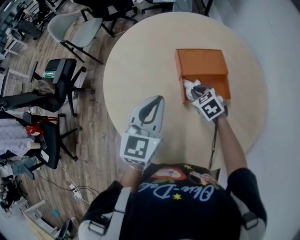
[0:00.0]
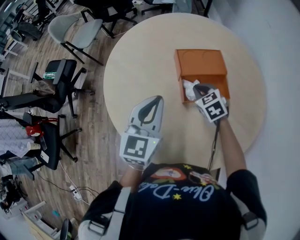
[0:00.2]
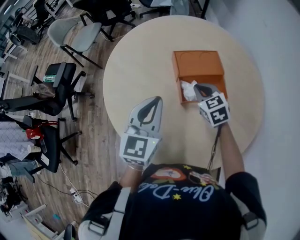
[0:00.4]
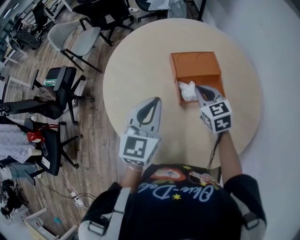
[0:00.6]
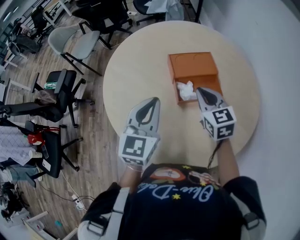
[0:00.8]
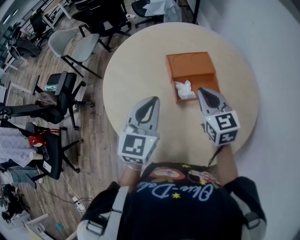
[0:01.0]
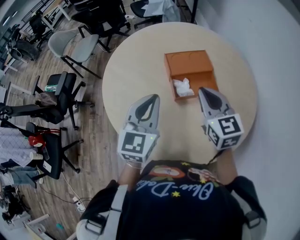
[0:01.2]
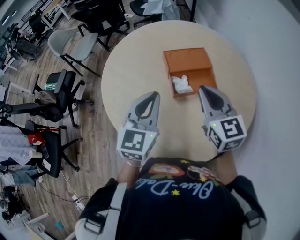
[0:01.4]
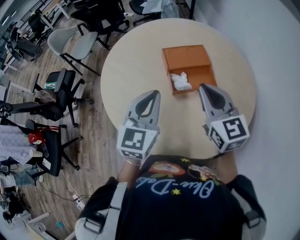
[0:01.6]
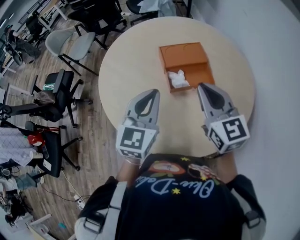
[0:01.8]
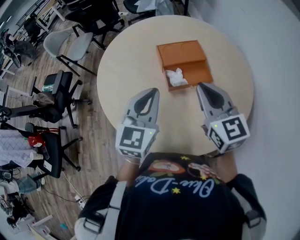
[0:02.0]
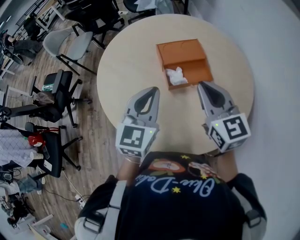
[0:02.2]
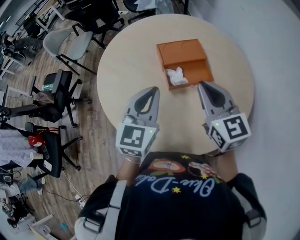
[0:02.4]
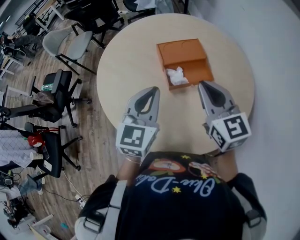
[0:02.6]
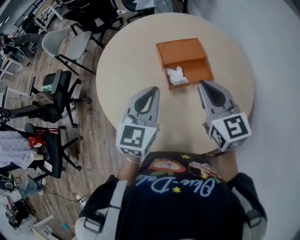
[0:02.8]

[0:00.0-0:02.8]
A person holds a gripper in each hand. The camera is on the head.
0.0 to 1.4 s: The right gripper is displaced upward and backward by some 25 cm, and tilts its fingers about 40 degrees upward. The left gripper shifts by about 5 cm.
1.4 to 2.8 s: The grippers make only small movements.

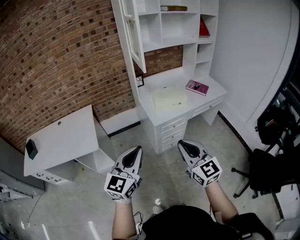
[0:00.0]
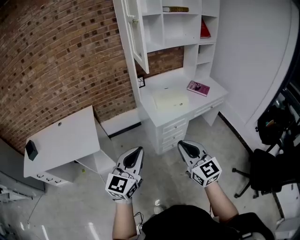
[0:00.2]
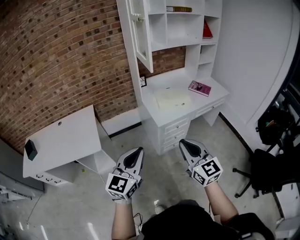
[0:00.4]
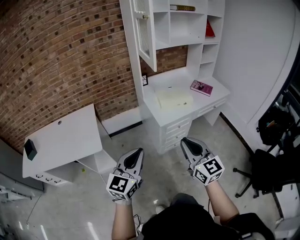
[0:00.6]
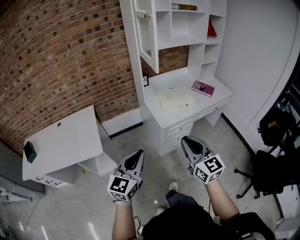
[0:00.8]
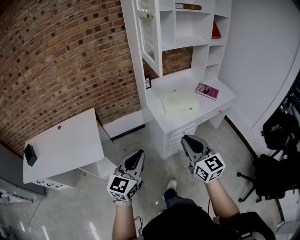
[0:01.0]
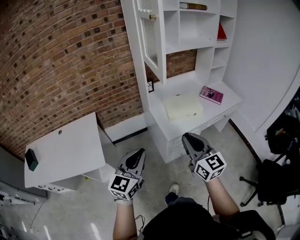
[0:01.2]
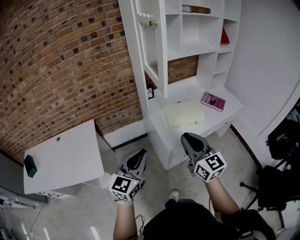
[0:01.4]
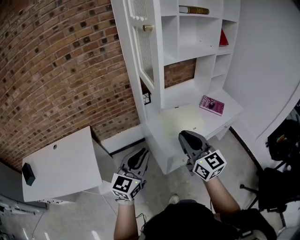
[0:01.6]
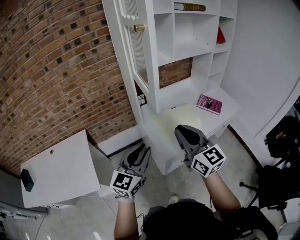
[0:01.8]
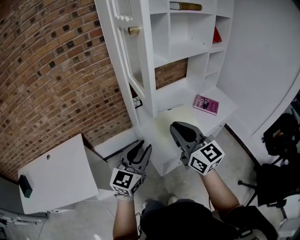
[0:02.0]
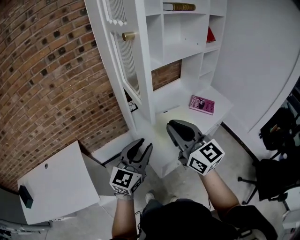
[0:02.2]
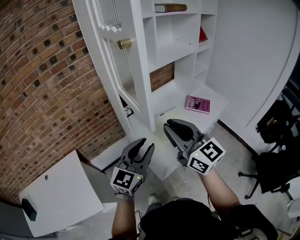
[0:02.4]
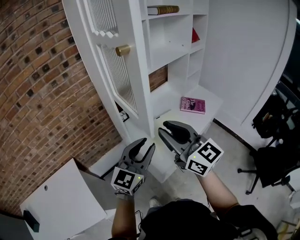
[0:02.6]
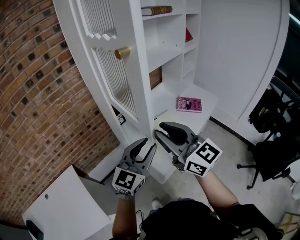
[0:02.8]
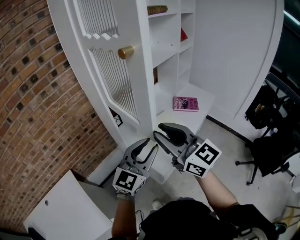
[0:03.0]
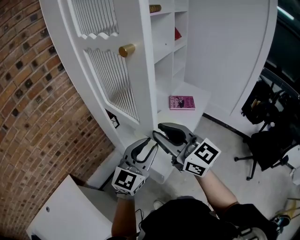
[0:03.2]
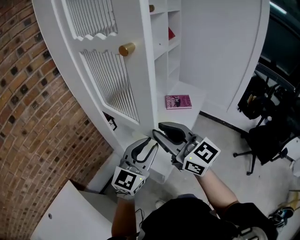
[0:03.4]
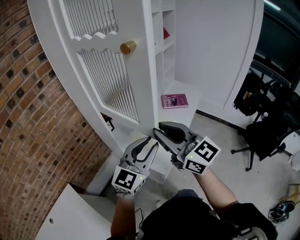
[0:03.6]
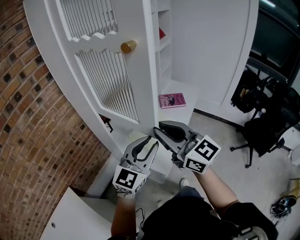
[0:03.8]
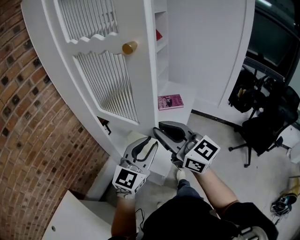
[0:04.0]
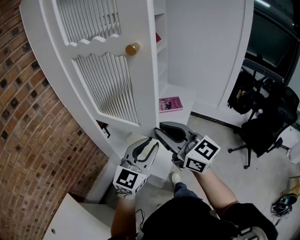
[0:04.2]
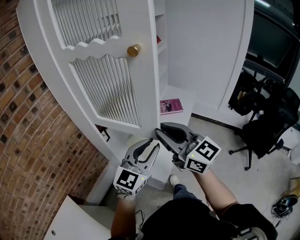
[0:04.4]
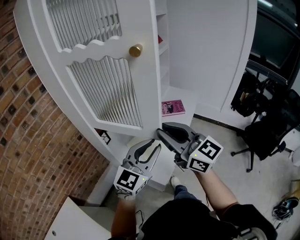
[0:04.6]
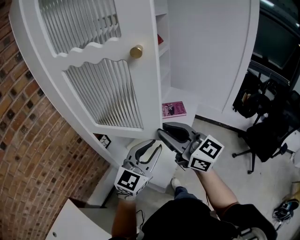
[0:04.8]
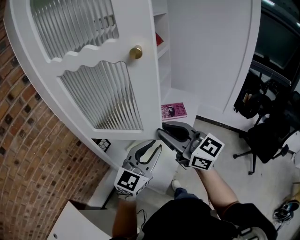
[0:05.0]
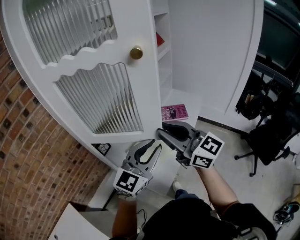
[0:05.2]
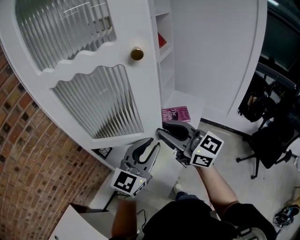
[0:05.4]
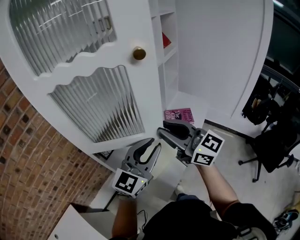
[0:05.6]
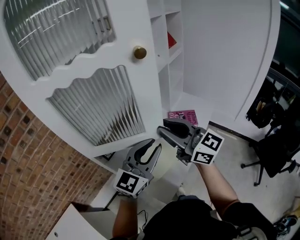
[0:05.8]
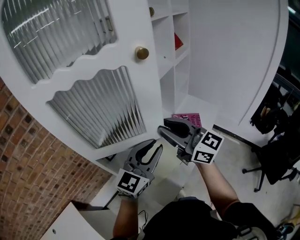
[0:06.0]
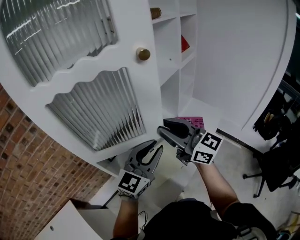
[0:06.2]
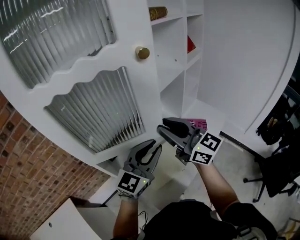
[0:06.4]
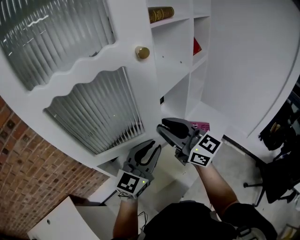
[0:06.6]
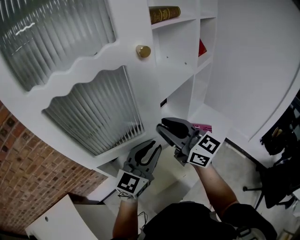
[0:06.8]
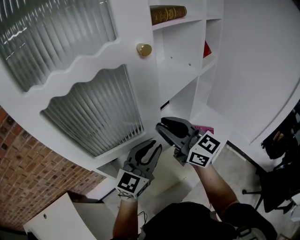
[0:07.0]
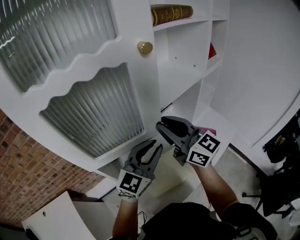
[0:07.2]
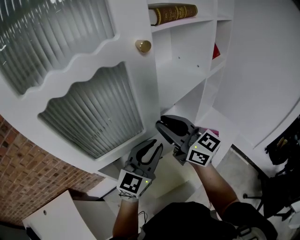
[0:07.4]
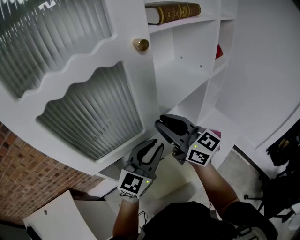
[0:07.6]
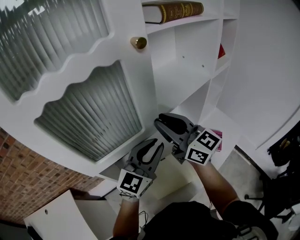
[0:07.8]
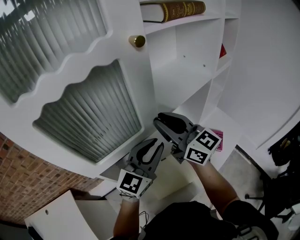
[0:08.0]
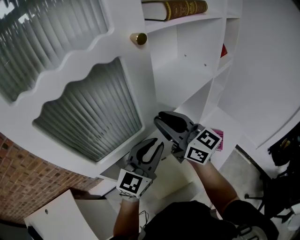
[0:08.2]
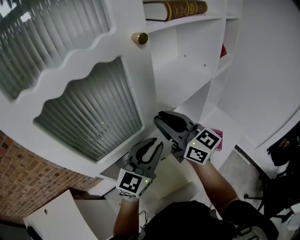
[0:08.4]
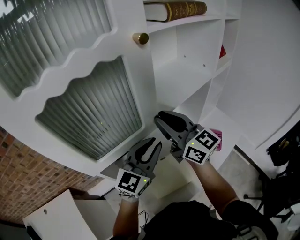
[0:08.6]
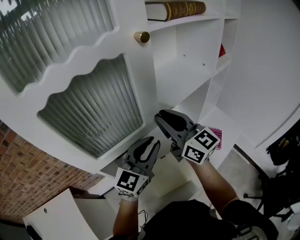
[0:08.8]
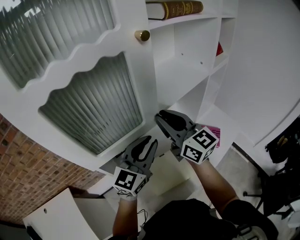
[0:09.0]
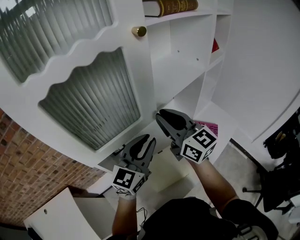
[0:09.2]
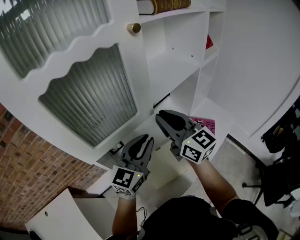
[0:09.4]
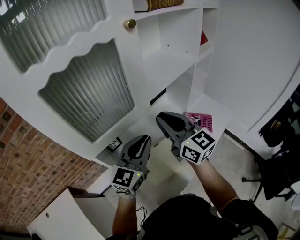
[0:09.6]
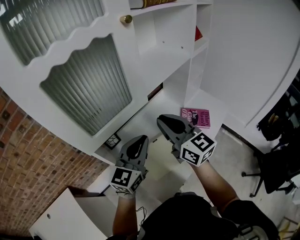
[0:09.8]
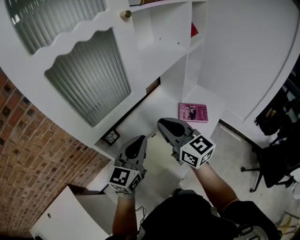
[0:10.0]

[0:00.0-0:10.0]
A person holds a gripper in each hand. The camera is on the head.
0.0 to 1.4 s: The two grippers go some 25 cm forward.
1.4 to 2.8 s: The left gripper is displaced forward by approximately 20 cm, swivels some 30 degrees, and opens up; the right gripper heads forward and upward, covering some 20 cm.
2.8 to 4.2 s: The grippers stay close to where they were, moving slightly.
4.2 to 5.8 s: Both grippers move forward, about 20 cm.
5.8 to 7.2 s: Both grippers travel together forward, some 15 cm.
7.2 to 8.6 s: The right gripper moves some 5 cm.
8.6 to 10.0 s: The left gripper goes approximately 10 cm backward; the right gripper moves backward and downward, approximately 15 cm.

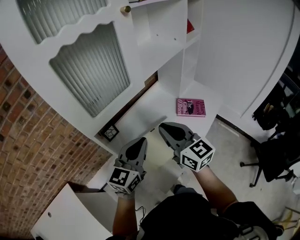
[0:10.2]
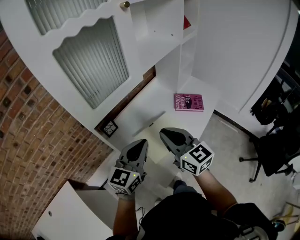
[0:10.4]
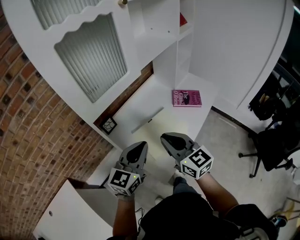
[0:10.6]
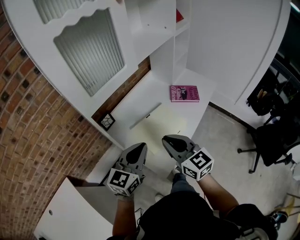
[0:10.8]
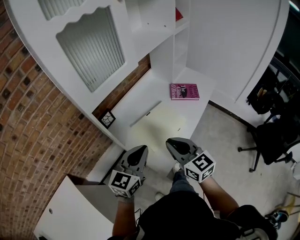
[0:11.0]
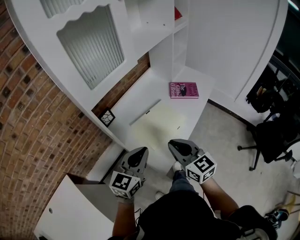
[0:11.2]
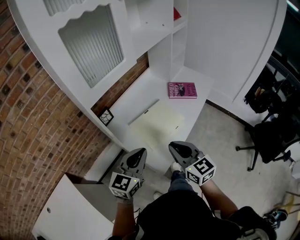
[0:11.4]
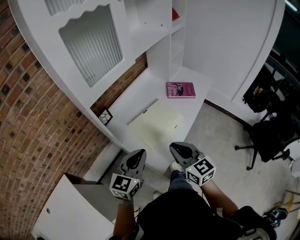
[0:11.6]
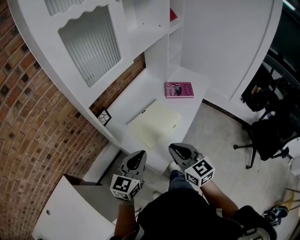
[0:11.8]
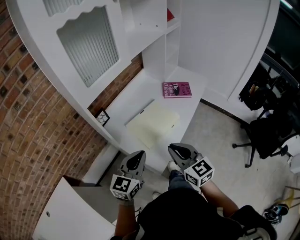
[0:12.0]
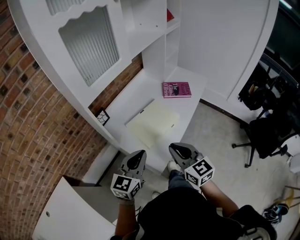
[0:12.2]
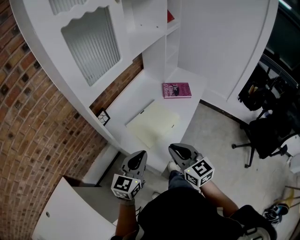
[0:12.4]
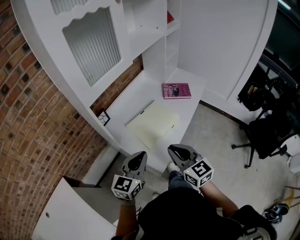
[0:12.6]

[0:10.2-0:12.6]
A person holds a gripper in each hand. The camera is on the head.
10.2 to 11.4 s: Both grippers move backward and downward, approximately 20 cm.
11.4 to 12.6 s: There are only small adjustments of the grippers.

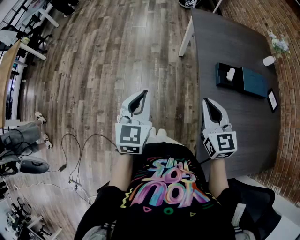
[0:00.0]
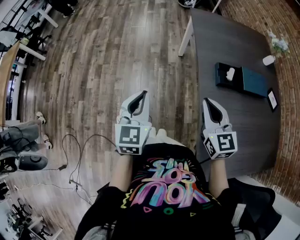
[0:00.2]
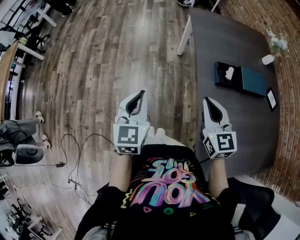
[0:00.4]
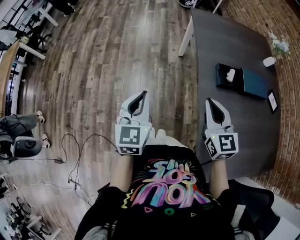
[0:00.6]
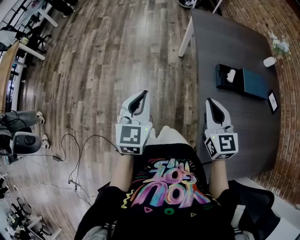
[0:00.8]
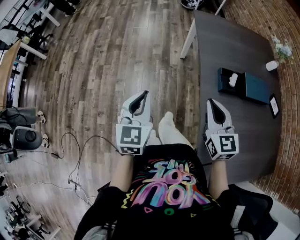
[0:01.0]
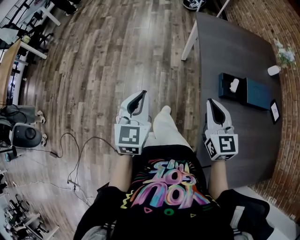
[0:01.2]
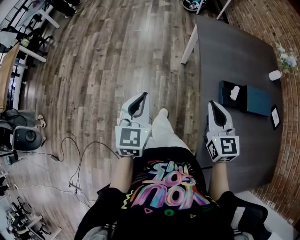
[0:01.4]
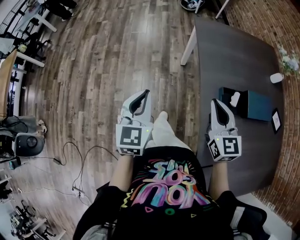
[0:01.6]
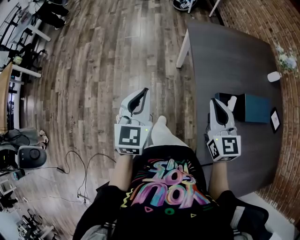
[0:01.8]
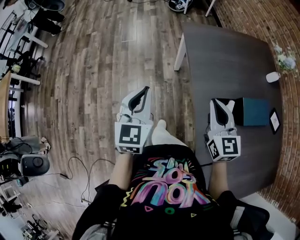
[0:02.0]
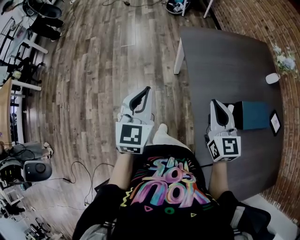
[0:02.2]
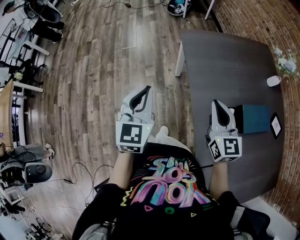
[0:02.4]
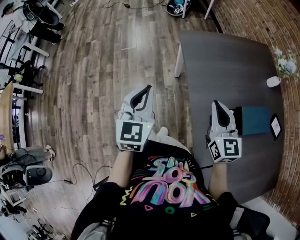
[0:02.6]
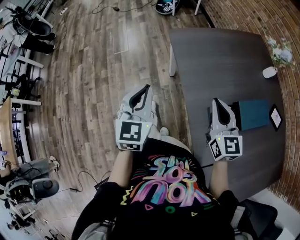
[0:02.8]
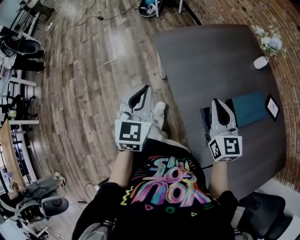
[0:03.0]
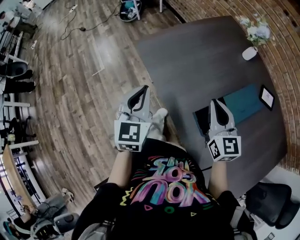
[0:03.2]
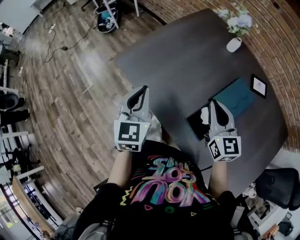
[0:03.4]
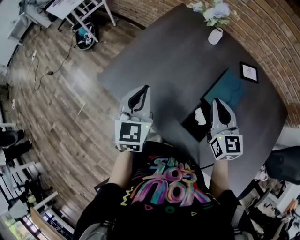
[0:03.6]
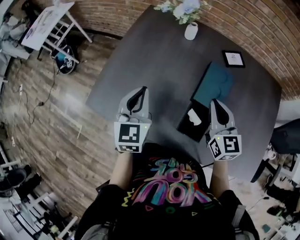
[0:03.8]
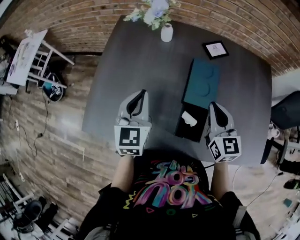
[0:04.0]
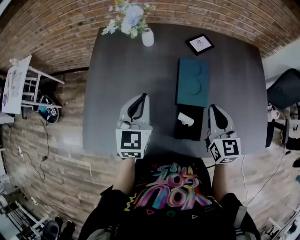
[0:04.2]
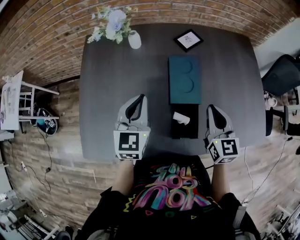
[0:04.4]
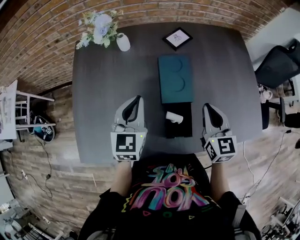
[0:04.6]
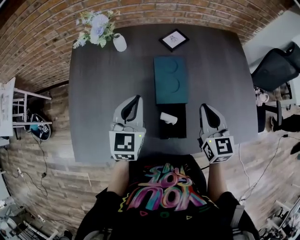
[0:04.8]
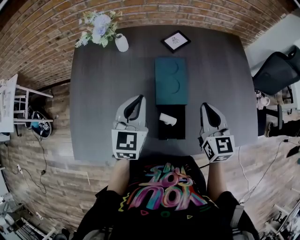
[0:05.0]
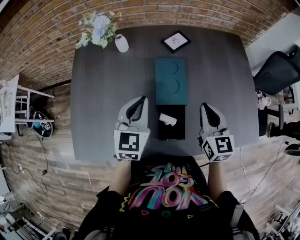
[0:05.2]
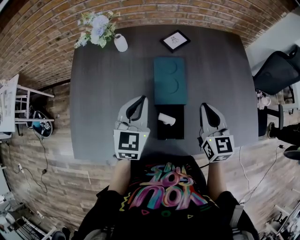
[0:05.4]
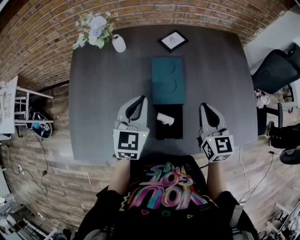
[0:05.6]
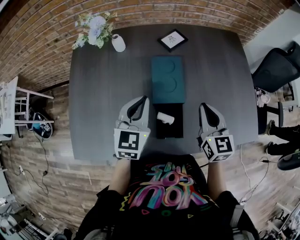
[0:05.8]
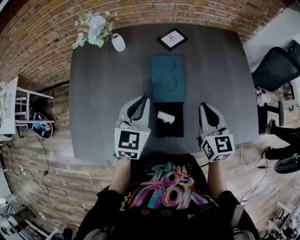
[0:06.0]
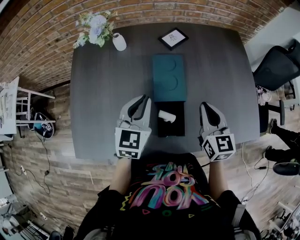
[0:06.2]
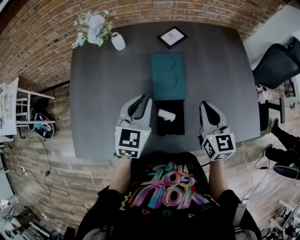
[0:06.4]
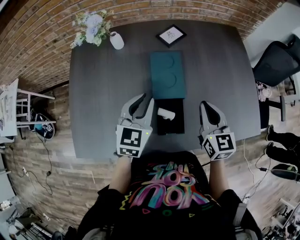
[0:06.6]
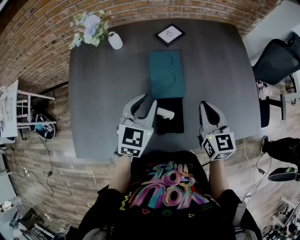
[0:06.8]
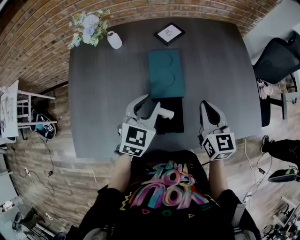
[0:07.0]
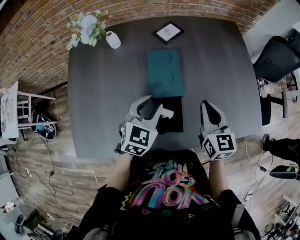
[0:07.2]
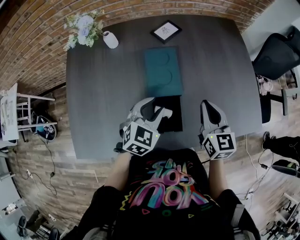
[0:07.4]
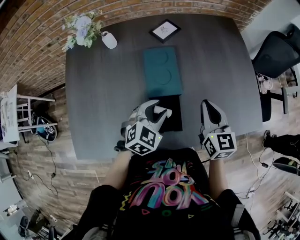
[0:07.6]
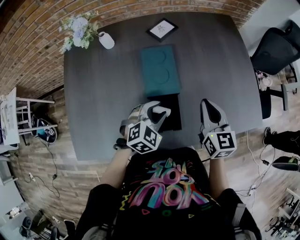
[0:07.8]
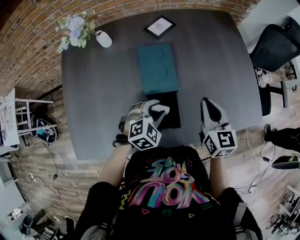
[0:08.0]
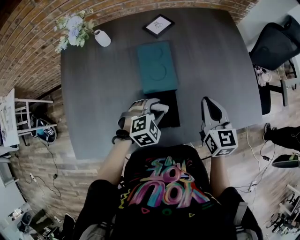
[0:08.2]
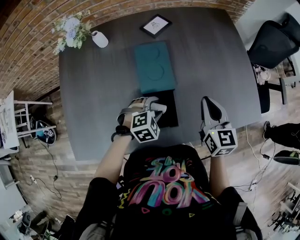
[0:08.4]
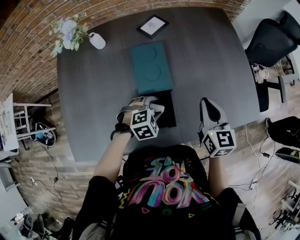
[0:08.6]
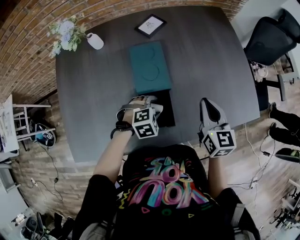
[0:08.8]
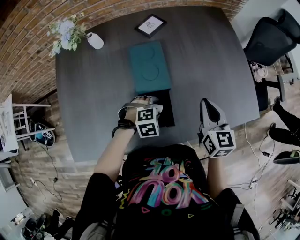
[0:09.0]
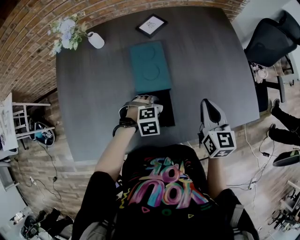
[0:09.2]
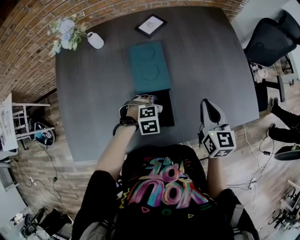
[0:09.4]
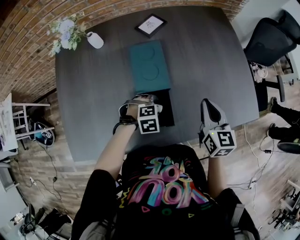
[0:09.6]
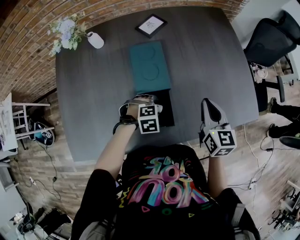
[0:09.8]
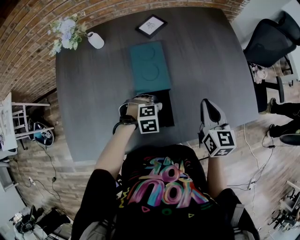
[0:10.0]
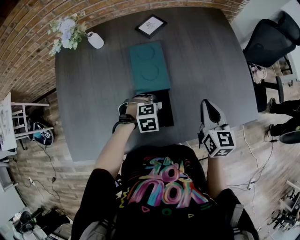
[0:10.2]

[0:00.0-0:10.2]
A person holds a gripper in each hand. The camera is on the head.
0.0 to 1.4 s: Both grippers travel together forward, about 10 cm.
1.4 to 3.0 s: The grippers both shift forward and to the right by roughly 25 cm. The left gripper swivels about 20 degrees. Meanwhile the right gripper swivels approximately 20 degrees.
3.0 to 4.4 s: The right gripper ends up about 20 cm from where it was, and rotates about 70 degrees, while the left gripper ends up about 40 cm from where it was, and rotates roughly 70 degrees.
4.4 to 5.8 s: The right gripper moves to the right, roughly 5 cm; the left gripper is displaced to the right by about 10 cm.
5.8 to 7.2 s: The left gripper is displaced to the right and downward by about 10 cm, and opens up.
7.2 to 8.8 s: The left gripper shifts about 15 cm downward and to the right, angles its fingers downward, by some 40 degrees, and opens up; the right gripper travels to the right by approximately 5 cm.
8.8 to 10.2 s: The left gripper closes.
